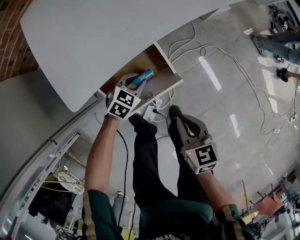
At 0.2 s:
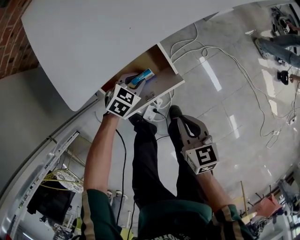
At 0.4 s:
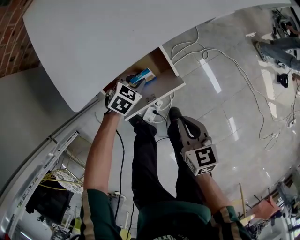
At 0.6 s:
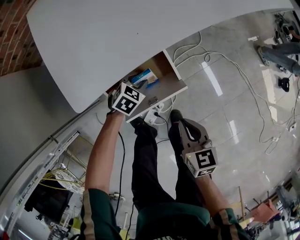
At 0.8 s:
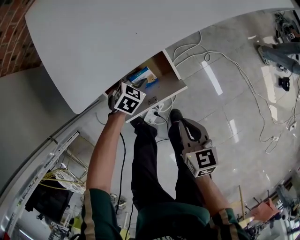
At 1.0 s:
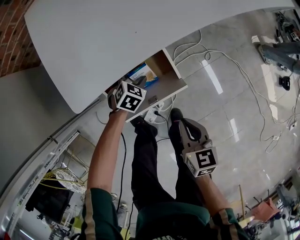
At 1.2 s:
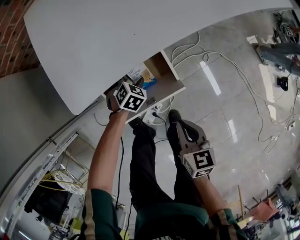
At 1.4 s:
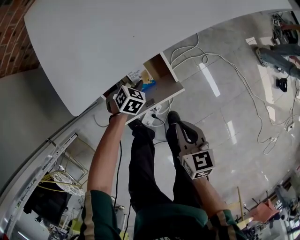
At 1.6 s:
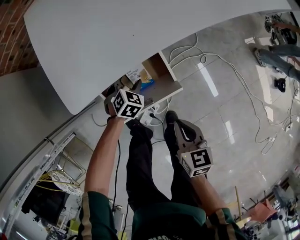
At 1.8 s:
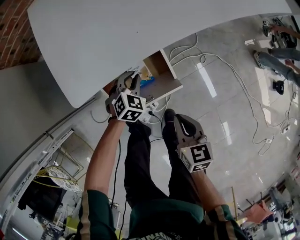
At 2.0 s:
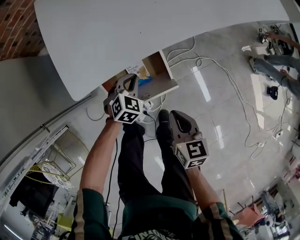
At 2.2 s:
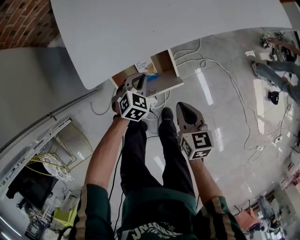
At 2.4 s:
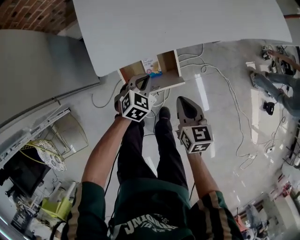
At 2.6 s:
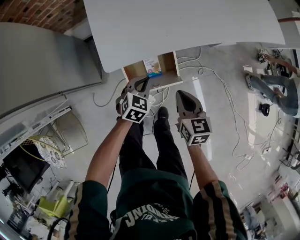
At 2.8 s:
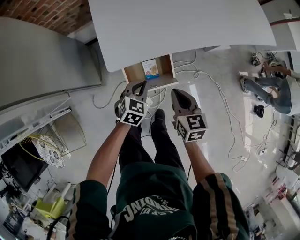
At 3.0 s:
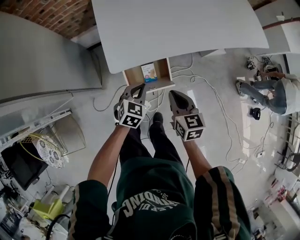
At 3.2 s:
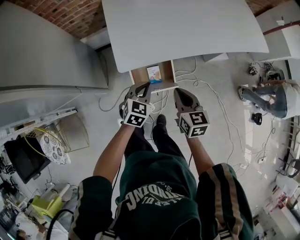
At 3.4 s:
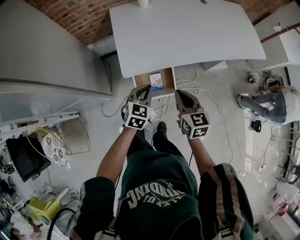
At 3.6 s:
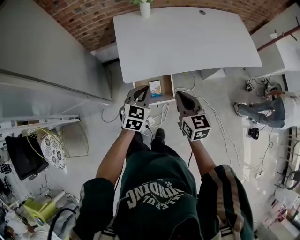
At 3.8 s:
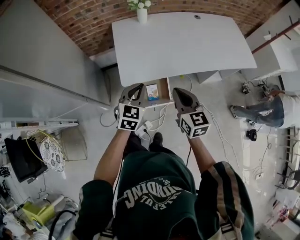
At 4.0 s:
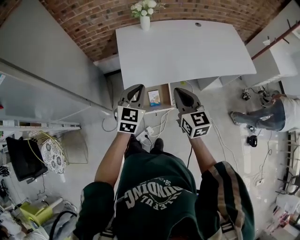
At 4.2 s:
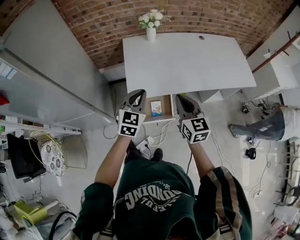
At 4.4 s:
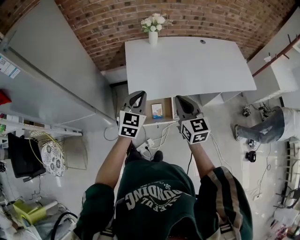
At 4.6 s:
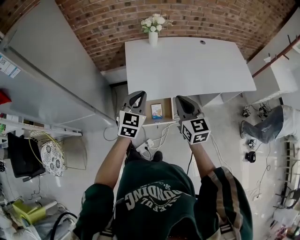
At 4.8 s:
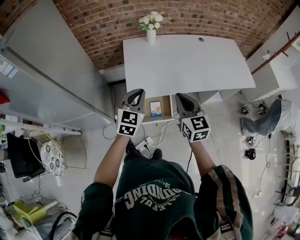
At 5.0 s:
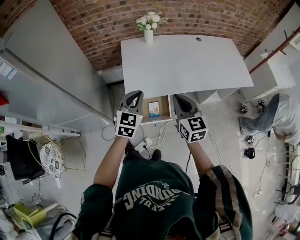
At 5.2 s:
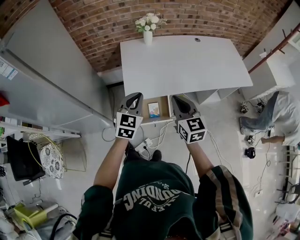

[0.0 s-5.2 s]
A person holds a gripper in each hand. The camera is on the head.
0.0 to 1.8 s: The left gripper changes its angle by approximately 20 degrees, and opens and closes again.
1.8 to 3.4 s: Both grippers travel together upward, roughly 30 cm. The right gripper rotates approximately 20 degrees. Meanwhile the left gripper swivels approximately 30 degrees.
3.4 to 5.2 s: Both grippers travel together upward, about 15 cm.

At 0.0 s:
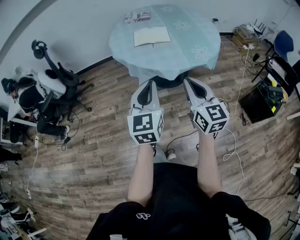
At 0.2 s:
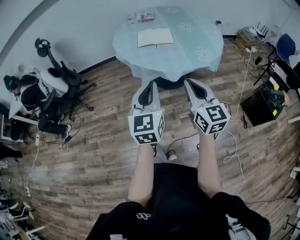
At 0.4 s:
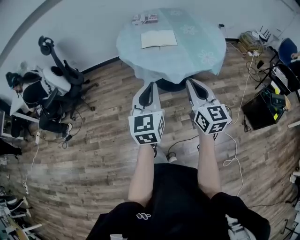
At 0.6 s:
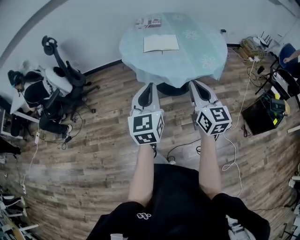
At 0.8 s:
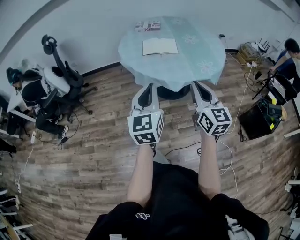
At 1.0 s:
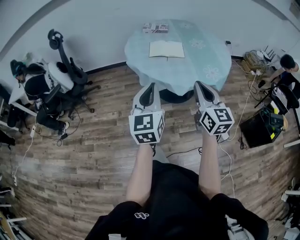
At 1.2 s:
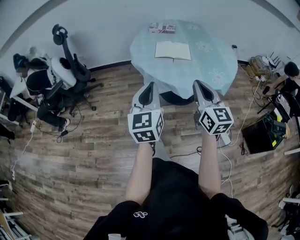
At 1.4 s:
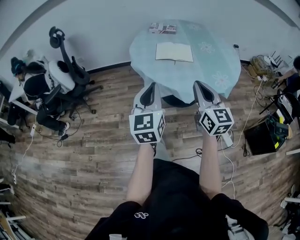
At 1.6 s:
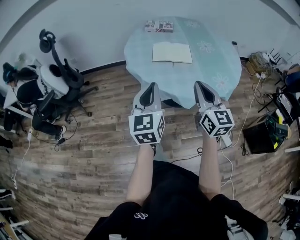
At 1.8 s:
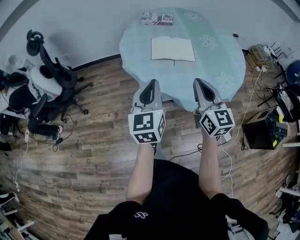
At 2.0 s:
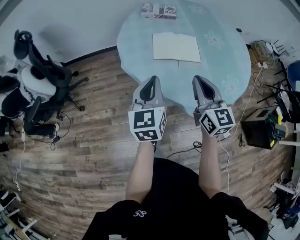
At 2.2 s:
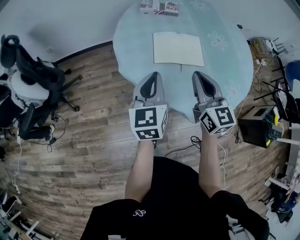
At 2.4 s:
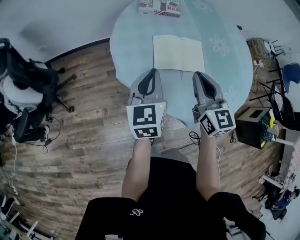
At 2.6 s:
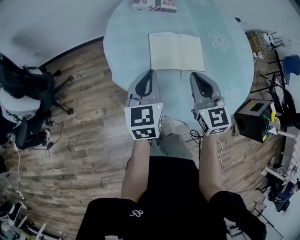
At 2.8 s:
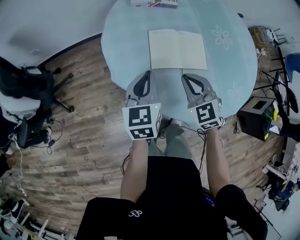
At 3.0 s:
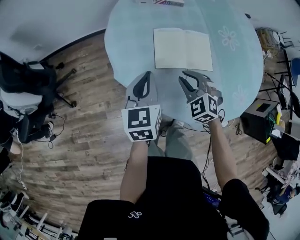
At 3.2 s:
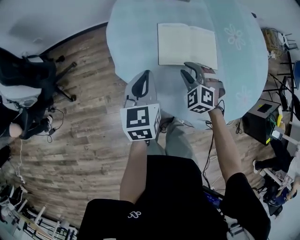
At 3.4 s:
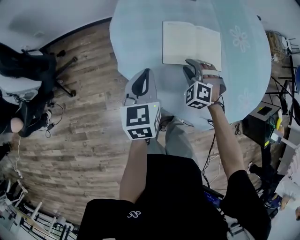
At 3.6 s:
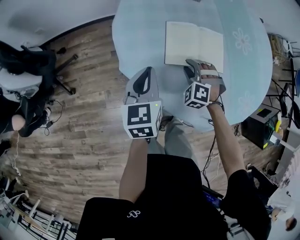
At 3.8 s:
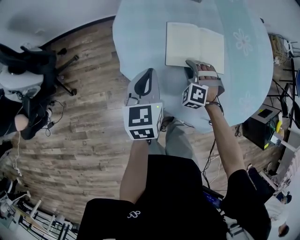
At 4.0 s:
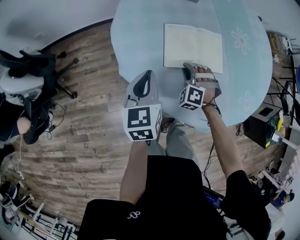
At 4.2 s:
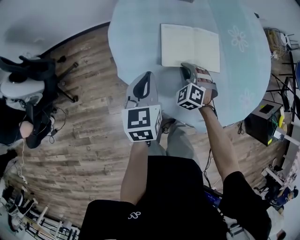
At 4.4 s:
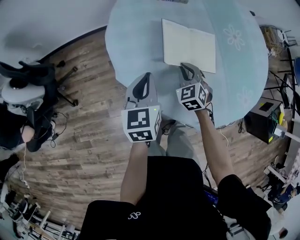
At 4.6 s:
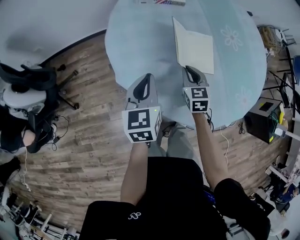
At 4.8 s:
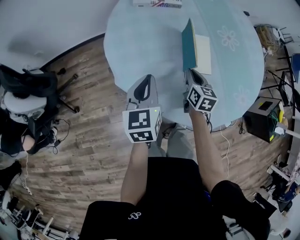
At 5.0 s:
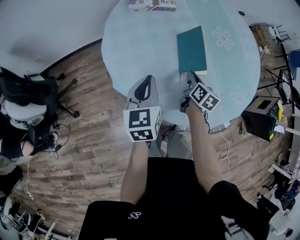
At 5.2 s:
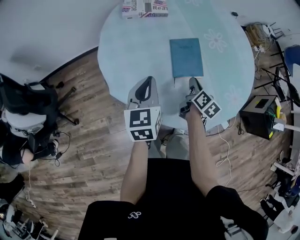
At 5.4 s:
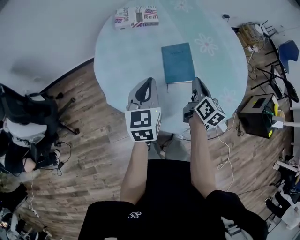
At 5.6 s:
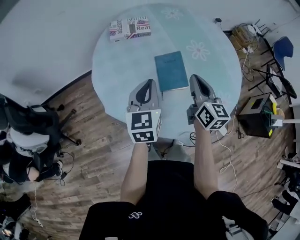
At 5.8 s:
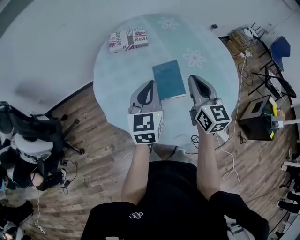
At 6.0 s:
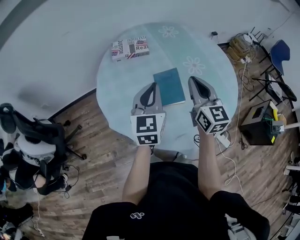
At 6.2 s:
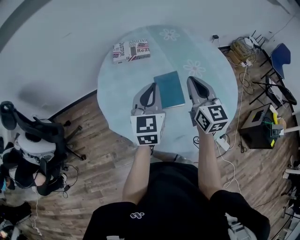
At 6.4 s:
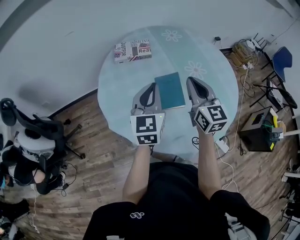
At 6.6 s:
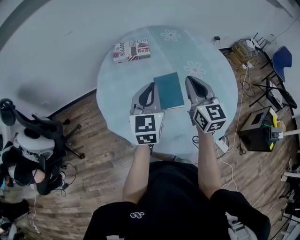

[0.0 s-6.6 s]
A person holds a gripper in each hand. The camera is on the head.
0.0 to 1.6 s: Both grippers move forward, approximately 20 cm.
1.6 to 3.2 s: The two grippers go roughly 40 cm forward and downward. The right gripper angles its fingers downward, by about 50 degrees, and opens up; the left gripper changes its angle by some 20 degrees.
3.2 to 5.0 s: The right gripper shifts some 10 cm to the right, rolls clockwise, seen from behind, by roughly 100 degrees, and closes.
5.0 to 6.6 s: The left gripper heads upward, to the right and forward, covering about 20 cm, and turns by approximately 20 degrees. Meanwhile the right gripper shifts approximately 30 cm upward, and turns by roughly 50 degrees.

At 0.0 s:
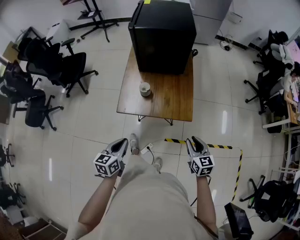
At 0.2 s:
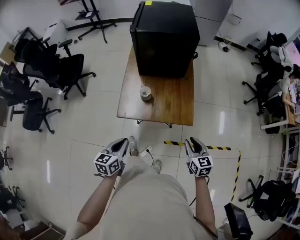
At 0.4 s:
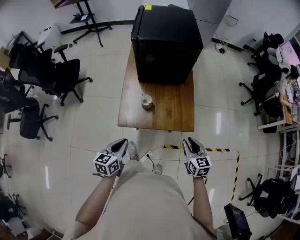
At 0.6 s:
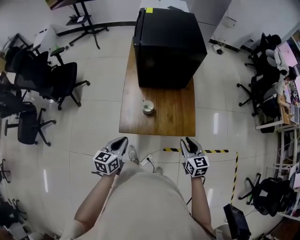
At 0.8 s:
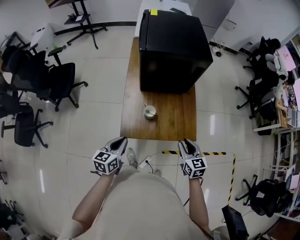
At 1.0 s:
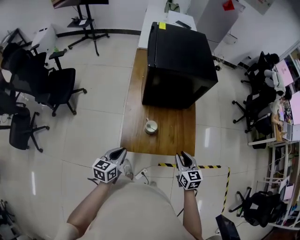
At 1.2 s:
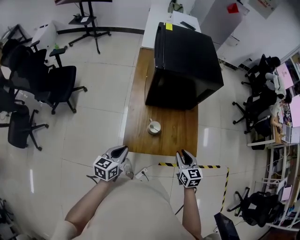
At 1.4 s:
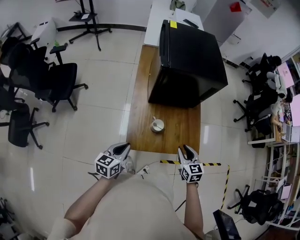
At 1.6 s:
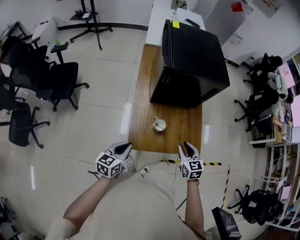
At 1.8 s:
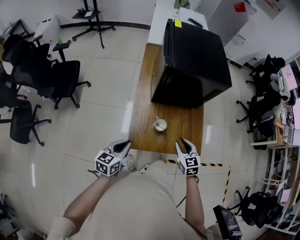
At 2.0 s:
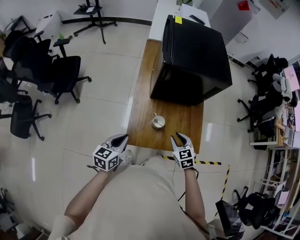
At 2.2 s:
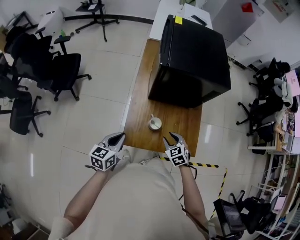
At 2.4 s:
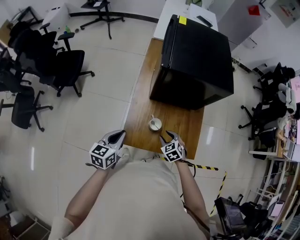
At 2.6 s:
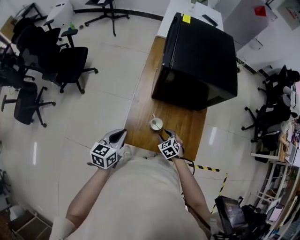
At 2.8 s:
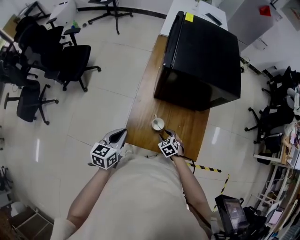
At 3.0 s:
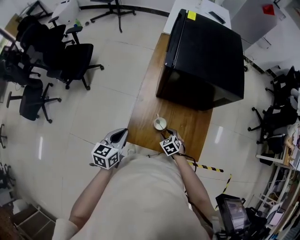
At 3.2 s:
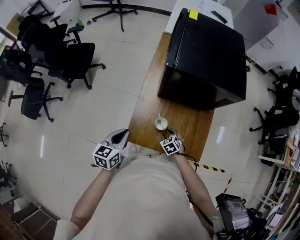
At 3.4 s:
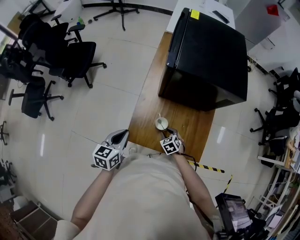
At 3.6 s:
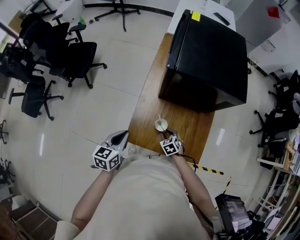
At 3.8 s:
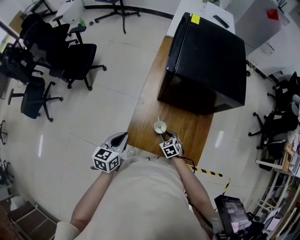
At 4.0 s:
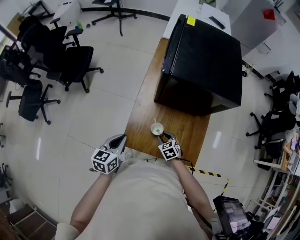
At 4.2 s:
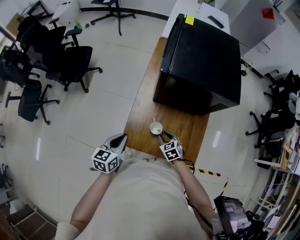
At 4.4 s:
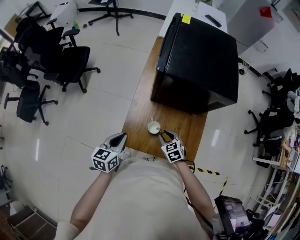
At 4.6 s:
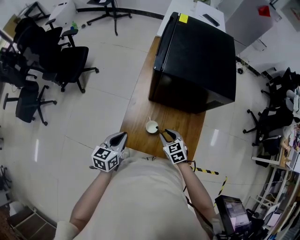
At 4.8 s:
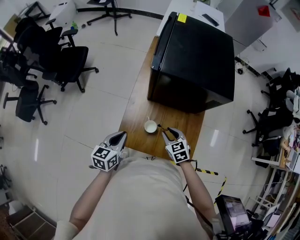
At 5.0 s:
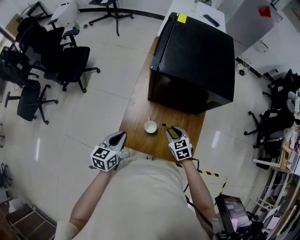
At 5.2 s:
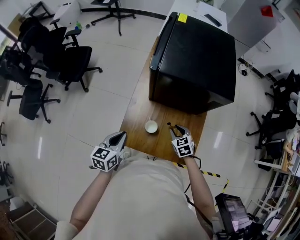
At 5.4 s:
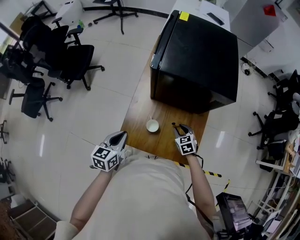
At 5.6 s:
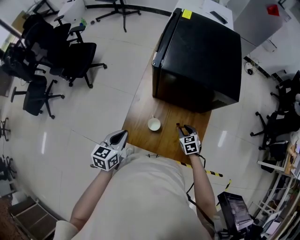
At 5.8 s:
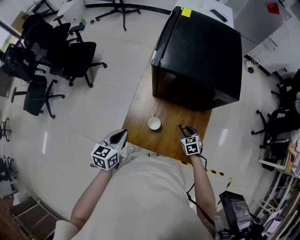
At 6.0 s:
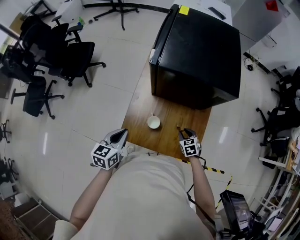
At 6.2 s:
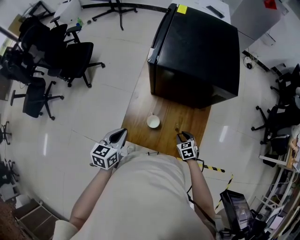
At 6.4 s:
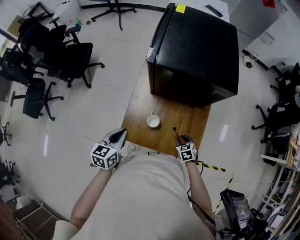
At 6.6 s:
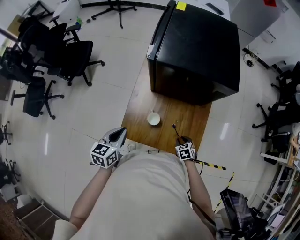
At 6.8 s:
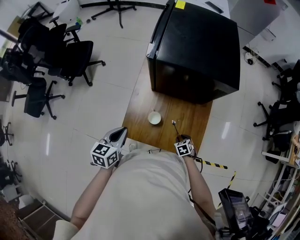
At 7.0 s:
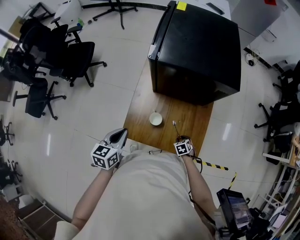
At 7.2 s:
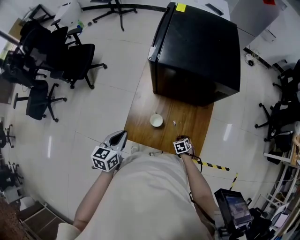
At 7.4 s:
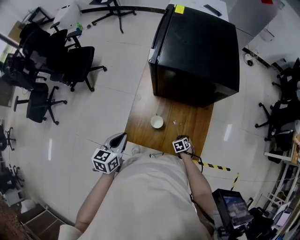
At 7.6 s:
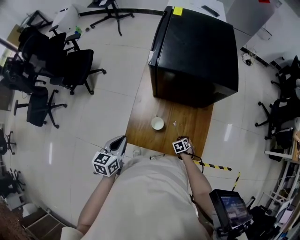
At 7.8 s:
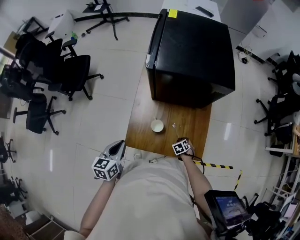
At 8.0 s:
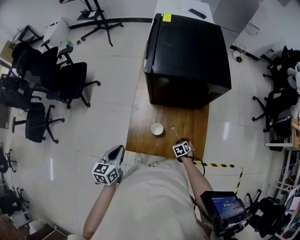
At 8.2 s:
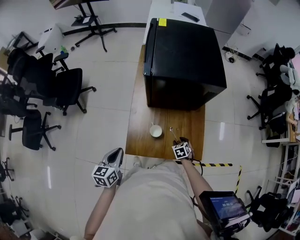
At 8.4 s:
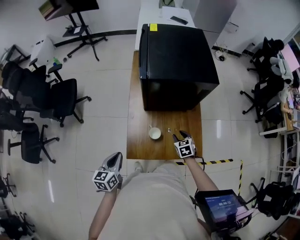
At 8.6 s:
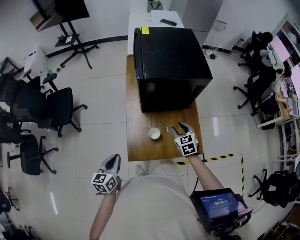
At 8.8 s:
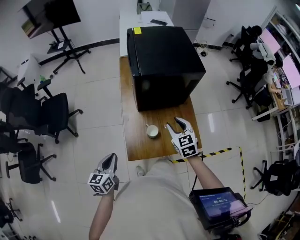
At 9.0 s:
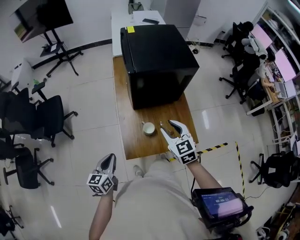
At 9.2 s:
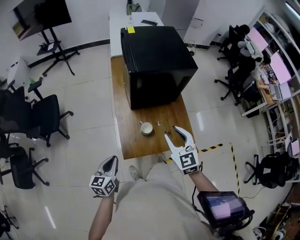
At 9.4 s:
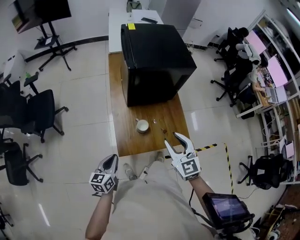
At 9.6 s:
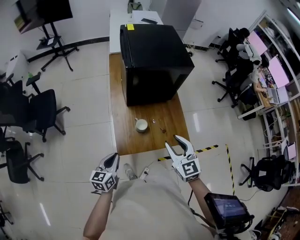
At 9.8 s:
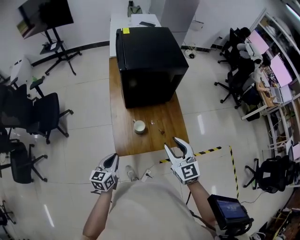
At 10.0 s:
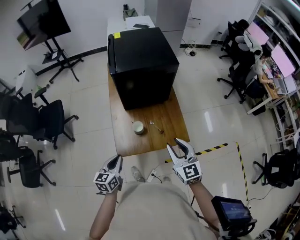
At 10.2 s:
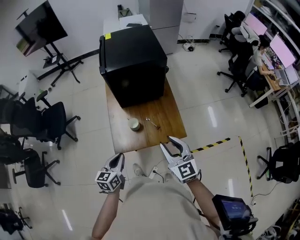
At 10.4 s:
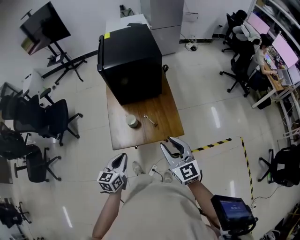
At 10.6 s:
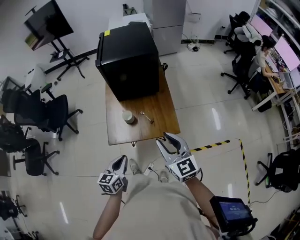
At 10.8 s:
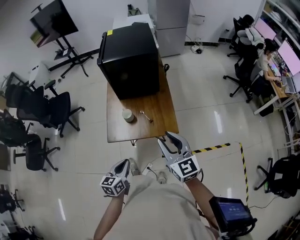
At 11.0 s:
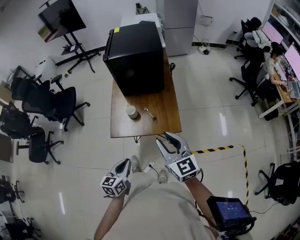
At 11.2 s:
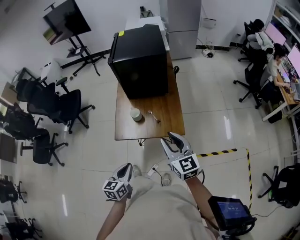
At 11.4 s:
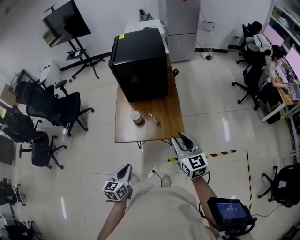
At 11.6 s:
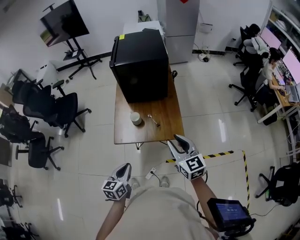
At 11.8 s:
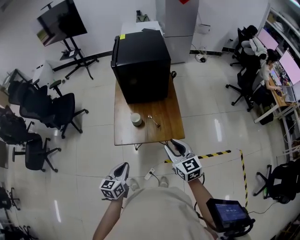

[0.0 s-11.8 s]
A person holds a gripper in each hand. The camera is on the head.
0.0 to 1.4 s: The right gripper travels to the left and forward by some 30 cm, while the left gripper shifts some 25 cm forward and to the left.
1.4 to 3.0 s: The right gripper travels downward and forward by some 20 cm, and changes its angle by approximately 40 degrees; the left gripper shifts approximately 5 cm forward.
3.0 to 4.4 s: The right gripper moves upward, approximately 10 cm.
4.4 to 6.0 s: The right gripper heads to the right and downward, covering roughly 15 cm.
6.0 to 7.4 s: The right gripper heads downward, covering approximately 15 cm.
7.4 to 8.8 s: The left gripper ends up approximately 10 cm from where it was. Meanwhile the right gripper travels upward by roughly 35 cm, and points its fingers about 40 degrees further upward.
8.8 to 10.4 s: The right gripper heads backward, to the right and upward, covering about 30 cm, and turns by roughly 30 degrees. The left gripper goes approximately 25 cm to the right and backward.
10.4 to 11.8 s: The left gripper shifts roughly 10 cm backward. The right gripper goes to the right and returns, some 10 cm each way.
